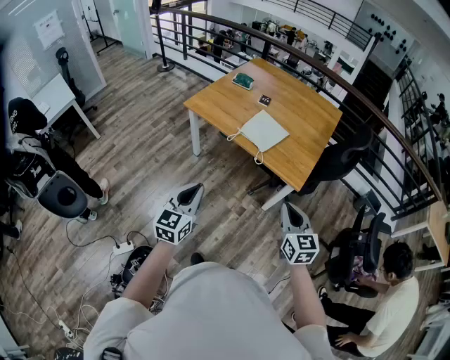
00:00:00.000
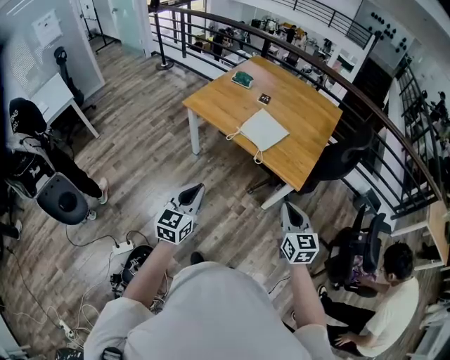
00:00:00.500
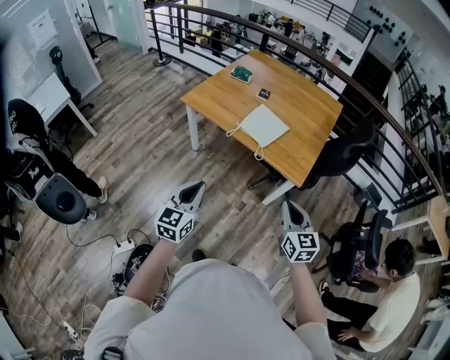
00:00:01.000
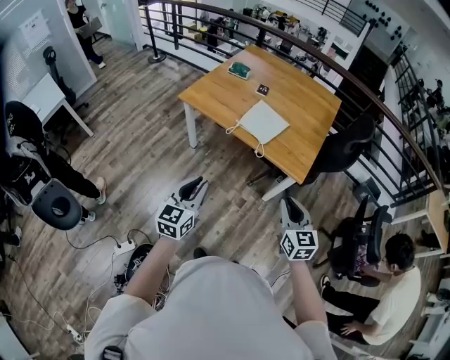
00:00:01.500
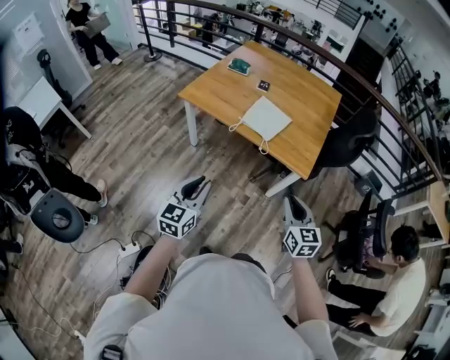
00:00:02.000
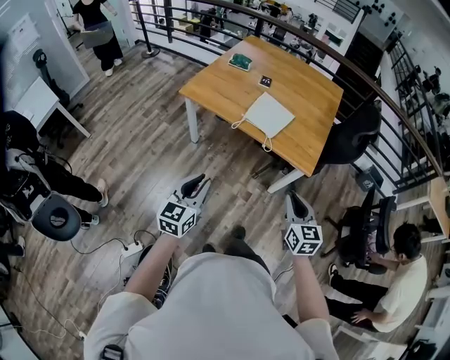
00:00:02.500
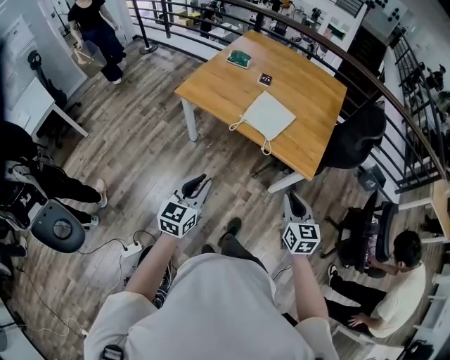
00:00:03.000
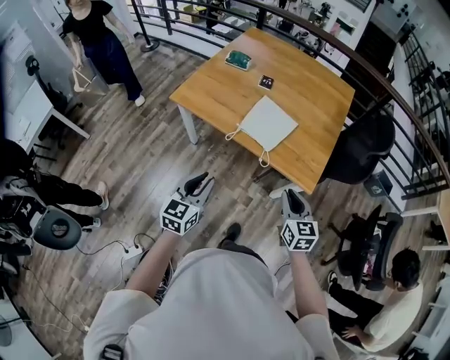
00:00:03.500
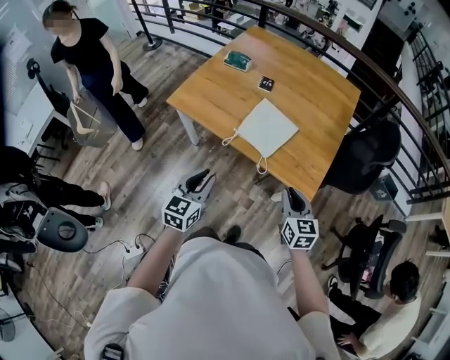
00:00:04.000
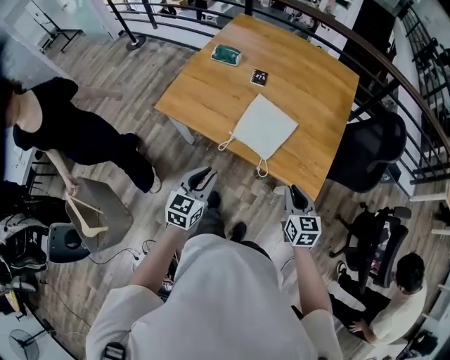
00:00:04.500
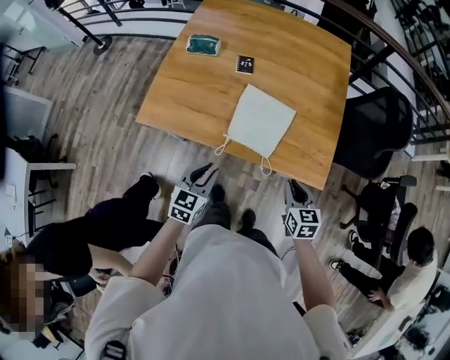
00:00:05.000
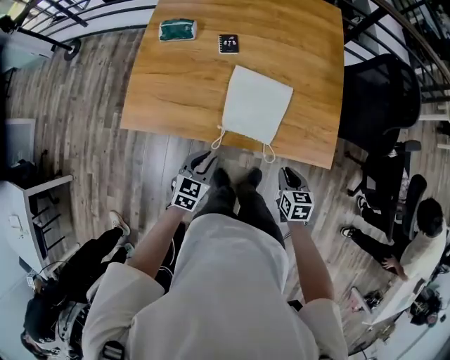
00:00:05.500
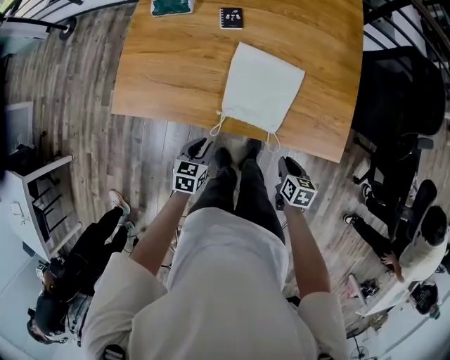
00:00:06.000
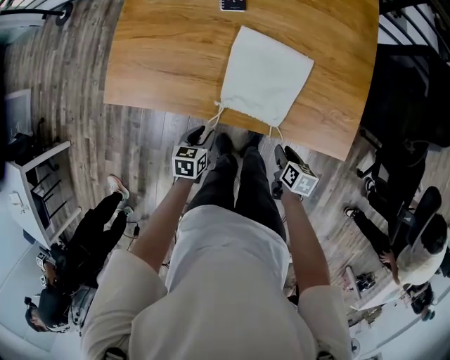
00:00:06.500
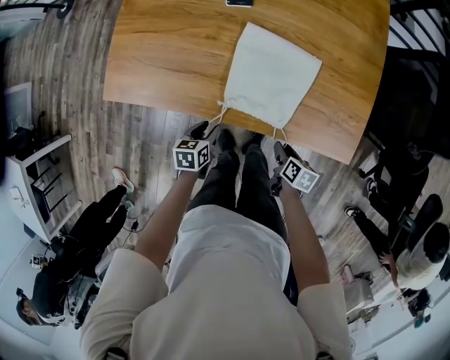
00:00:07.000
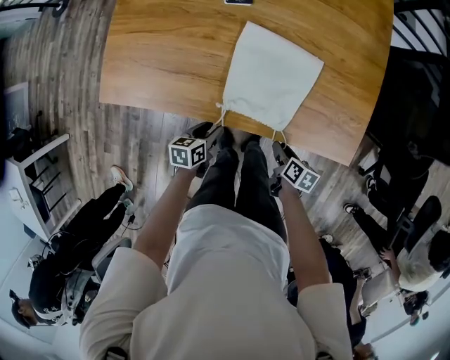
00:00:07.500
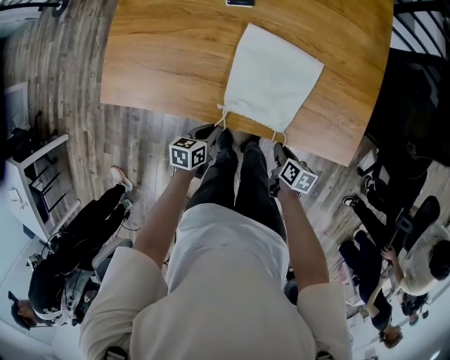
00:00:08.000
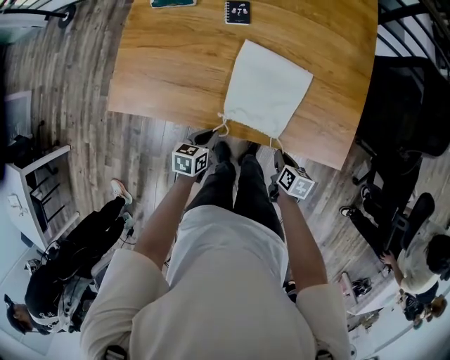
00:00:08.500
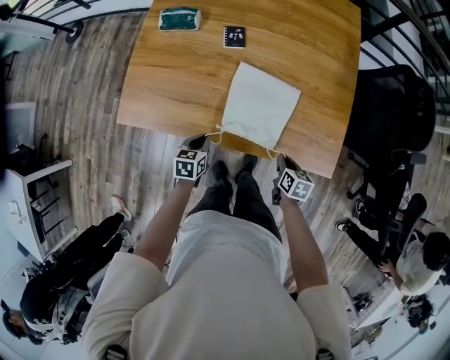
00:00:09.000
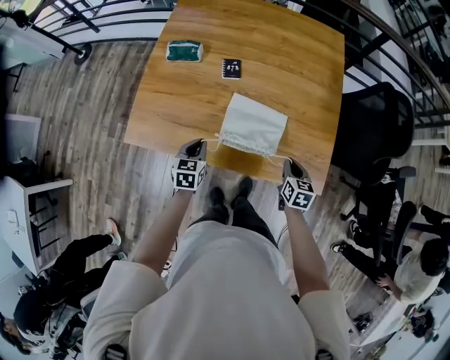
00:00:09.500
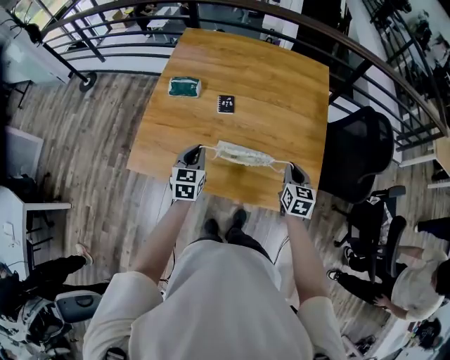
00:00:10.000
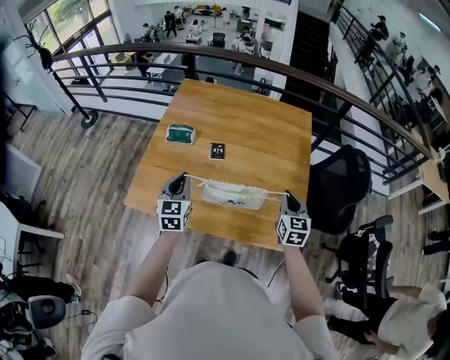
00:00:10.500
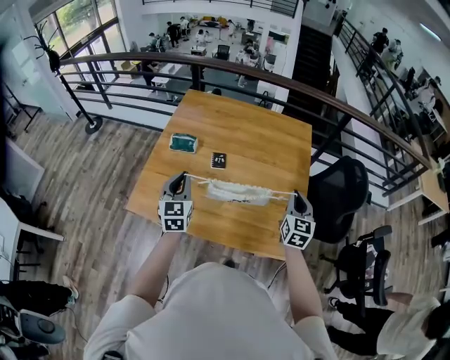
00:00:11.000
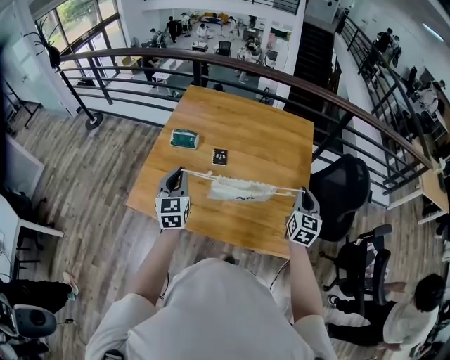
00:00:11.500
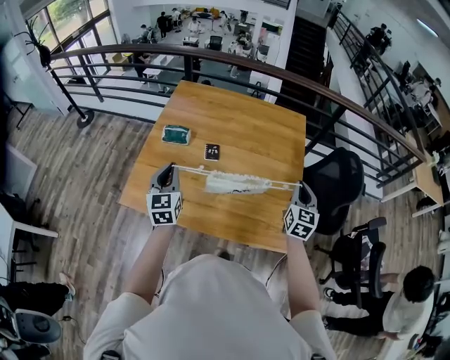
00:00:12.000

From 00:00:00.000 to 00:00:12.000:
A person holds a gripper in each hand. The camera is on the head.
From 00:00:00.000 to 00:00:02.000: The right gripper ends up roughly 5 cm from where it was. Meanwhile the left gripper shifts by about 5 cm.
From 00:00:02.000 to 00:00:04.000: The two grippers go roughly 25 cm forward.
From 00:00:04.000 to 00:00:06.000: The left gripper is displaced downward and forward by roughly 40 cm, and swivels some 40 degrees. Meanwhile the right gripper is displaced downward by about 30 cm, and changes its angle by some 50 degrees.
From 00:00:06.000 to 00:00:08.000: The grippers both shift downward by about 10 cm. The left gripper swivels roughly 20 degrees.
From 00:00:08.000 to 00:00:10.000: The two grippers go roughly 35 cm upward and forward. The left gripper turns by about 50 degrees; the right gripper rotates approximately 50 degrees.
From 00:00:10.000 to 00:00:12.000: The right gripper shifts about 20 cm upward and to the right, and changes its angle by about 20 degrees. Meanwhile the left gripper goes about 15 cm upward, and rotates roughly 20 degrees.

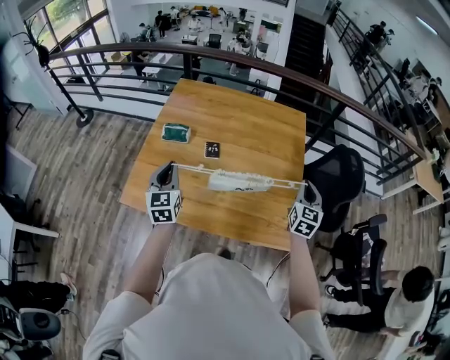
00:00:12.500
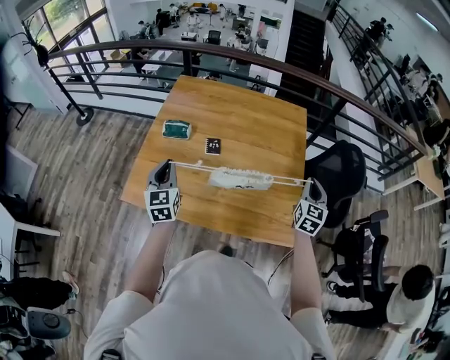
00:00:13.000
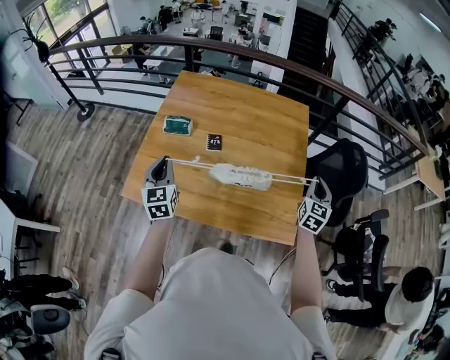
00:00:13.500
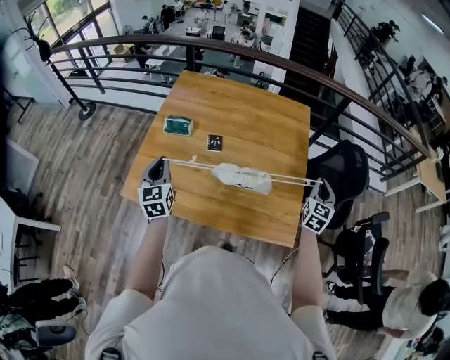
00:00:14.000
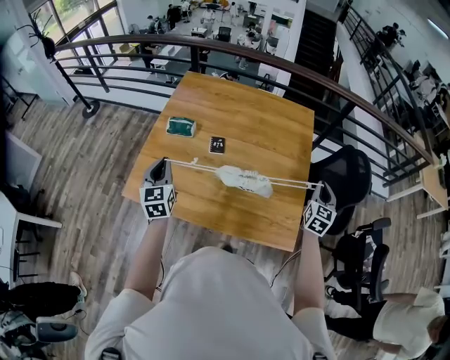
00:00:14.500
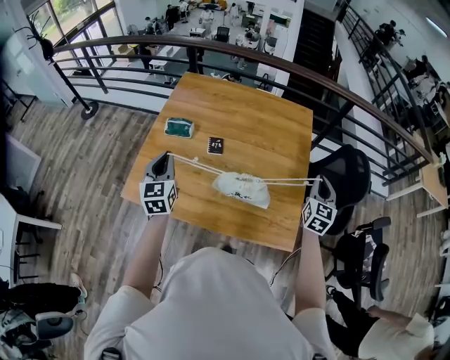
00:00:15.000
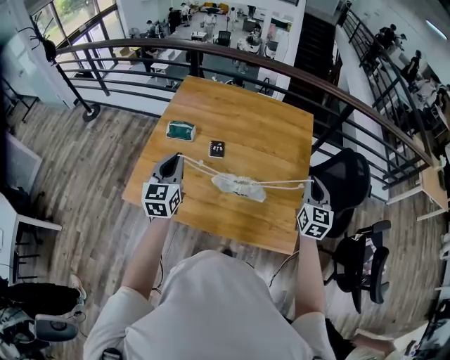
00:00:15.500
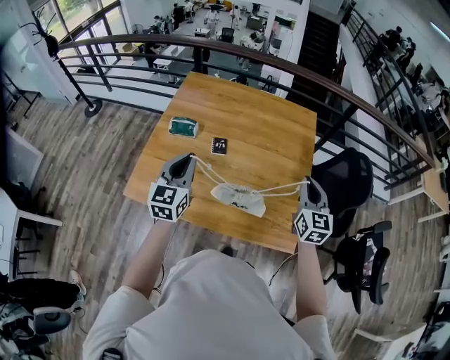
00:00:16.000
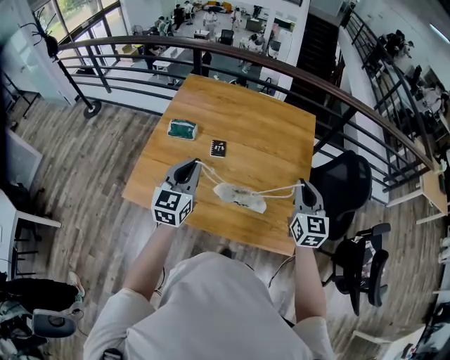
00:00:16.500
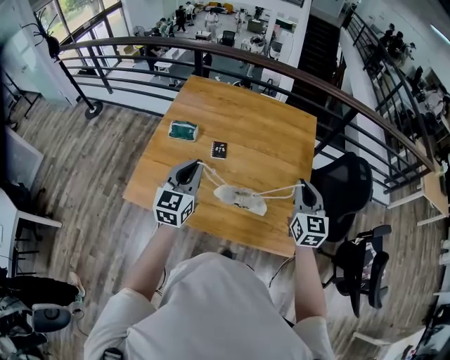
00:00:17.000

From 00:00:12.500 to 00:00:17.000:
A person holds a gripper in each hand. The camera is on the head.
From 00:00:12.500 to 00:00:14.500: The right gripper goes some 5 cm to the right.
From 00:00:14.500 to 00:00:17.000: The right gripper shifts about 15 cm to the left and upward, and changes its angle by approximately 20 degrees. The left gripper travels to the right and upward by about 15 cm, and turns by roughly 20 degrees.

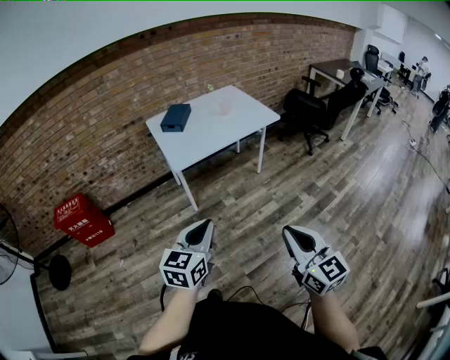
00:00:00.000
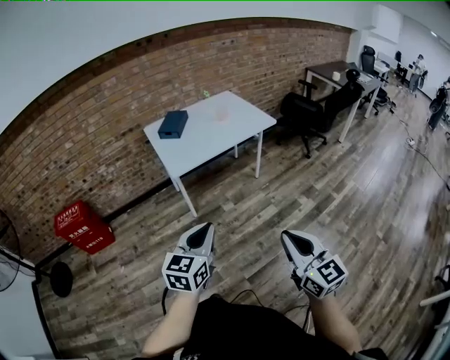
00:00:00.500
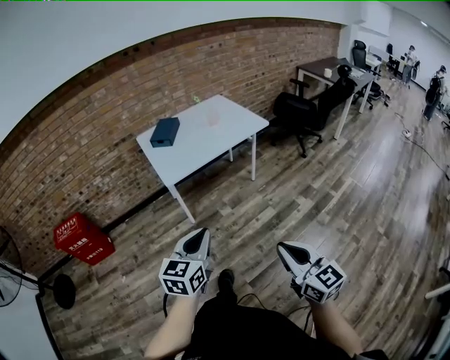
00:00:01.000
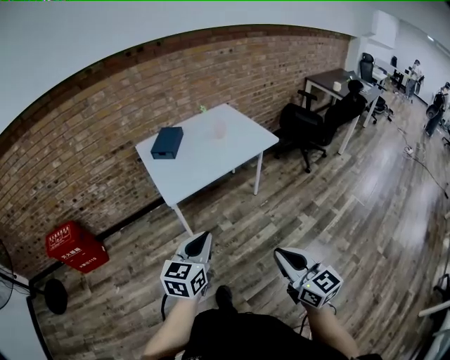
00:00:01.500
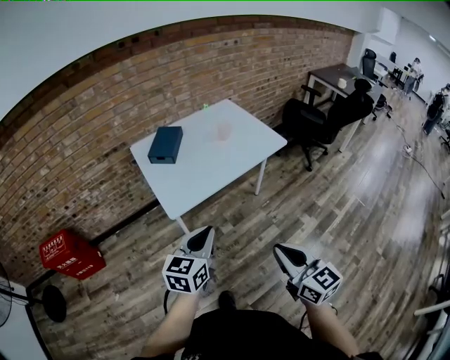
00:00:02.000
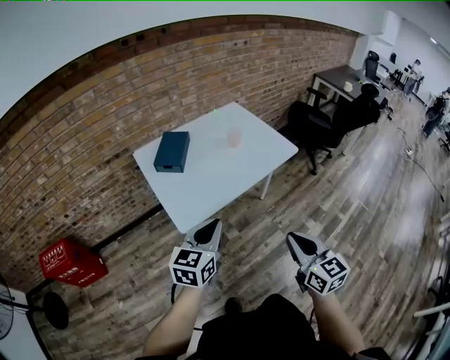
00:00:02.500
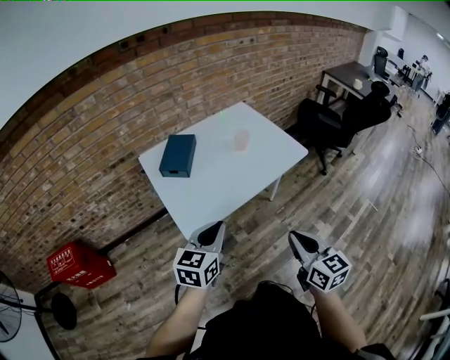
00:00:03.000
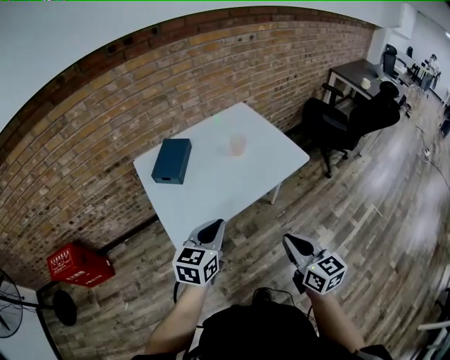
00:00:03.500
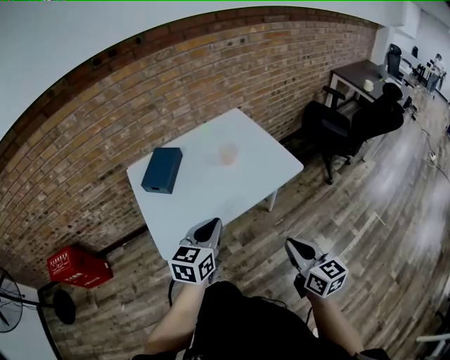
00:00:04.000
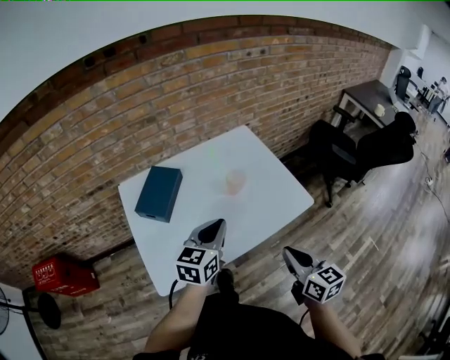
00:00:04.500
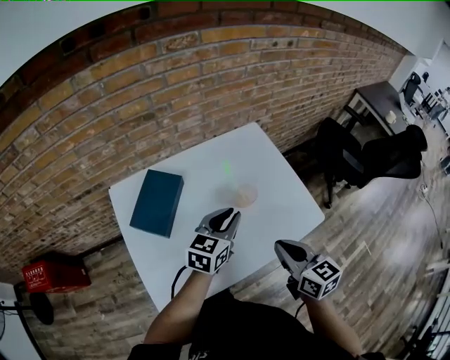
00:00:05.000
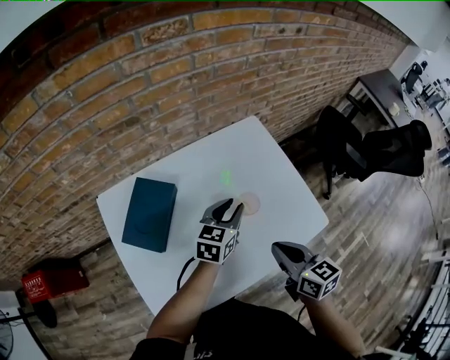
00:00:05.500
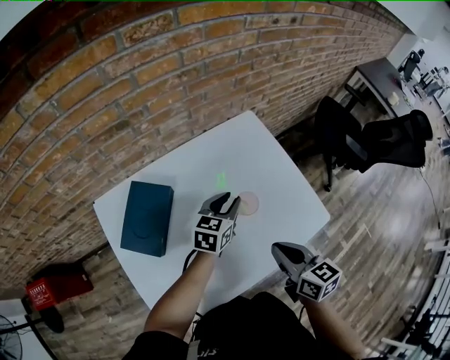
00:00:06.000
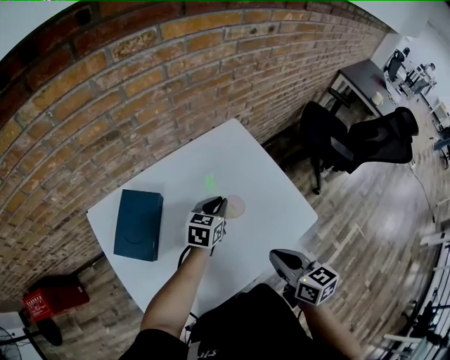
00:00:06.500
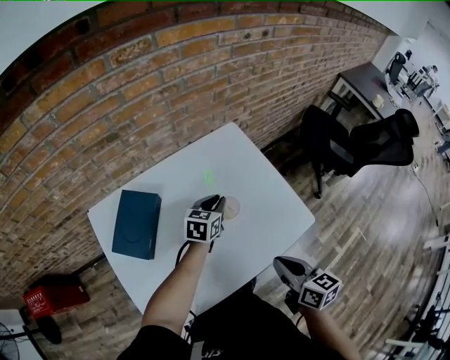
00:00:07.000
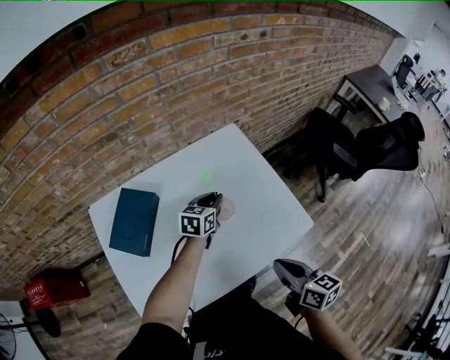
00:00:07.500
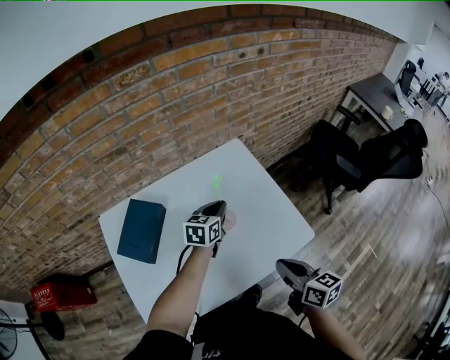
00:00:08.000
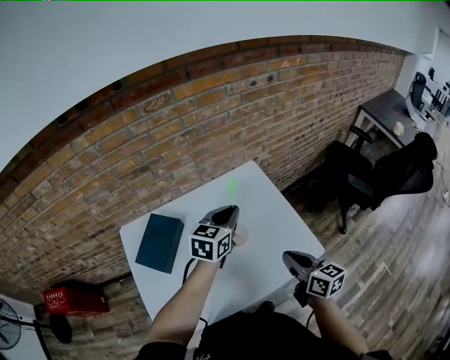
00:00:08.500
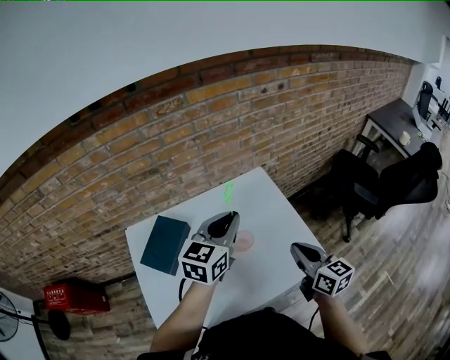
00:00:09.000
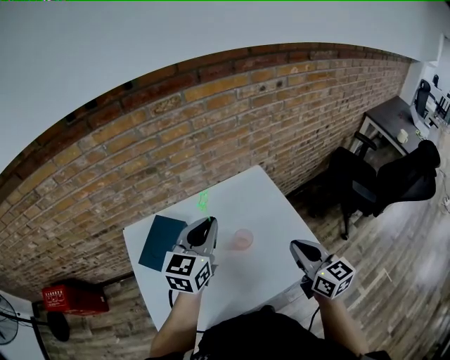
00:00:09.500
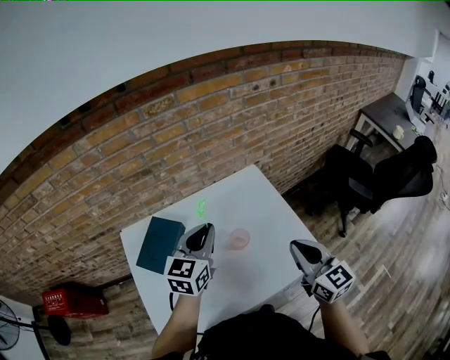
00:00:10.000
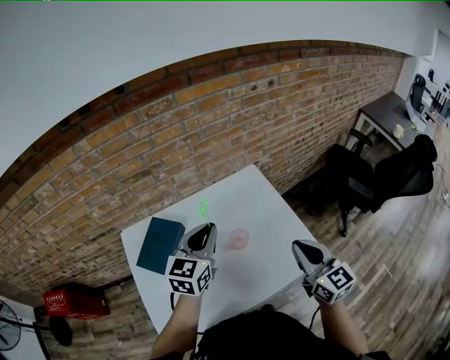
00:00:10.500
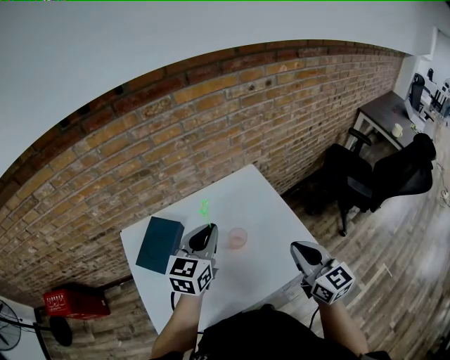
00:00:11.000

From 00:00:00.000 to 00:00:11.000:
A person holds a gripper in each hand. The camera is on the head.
From 00:00:00.000 to 00:00:02.000: The grippers both shift forward by approximately 25 cm.
From 00:00:02.000 to 00:00:03.500: Both grippers travel together forward, some 20 cm.
From 00:00:03.500 to 00:00:05.500: The two grippers go about 40 cm forward. The left gripper opens its fingers.
From 00:00:05.500 to 00:00:07.500: The left gripper moves forward and downward, about 5 cm; the right gripper is displaced to the right and backward by approximately 10 cm.
From 00:00:07.500 to 00:00:09.000: The left gripper goes about 25 cm upward, and turns by some 20 degrees, while the right gripper is displaced forward and upward by about 15 cm.
From 00:00:09.000 to 00:00:11.000: The left gripper moves about 5 cm.
